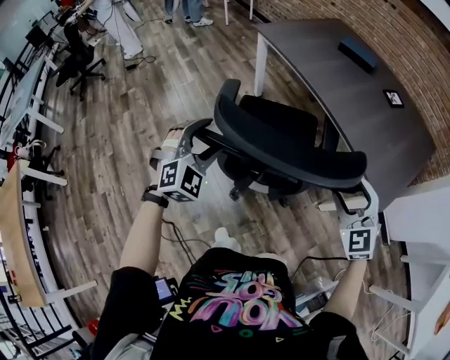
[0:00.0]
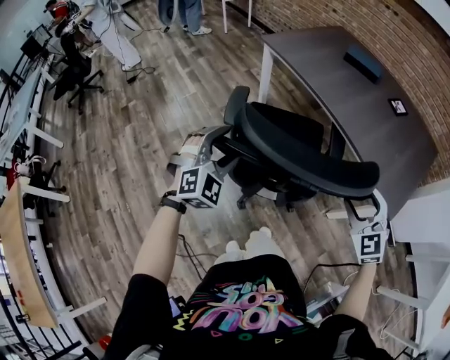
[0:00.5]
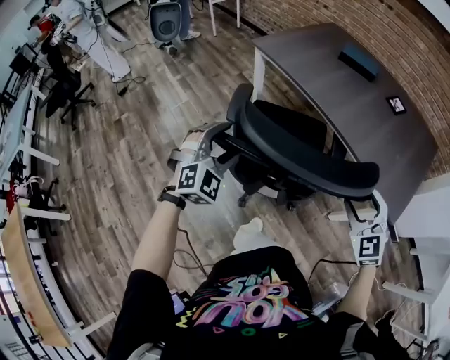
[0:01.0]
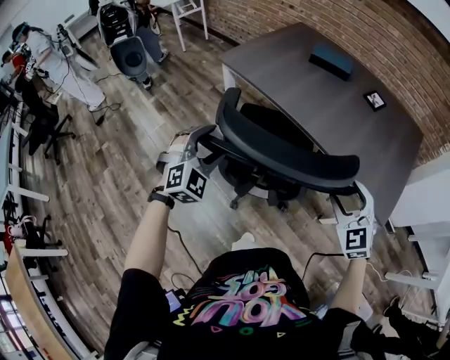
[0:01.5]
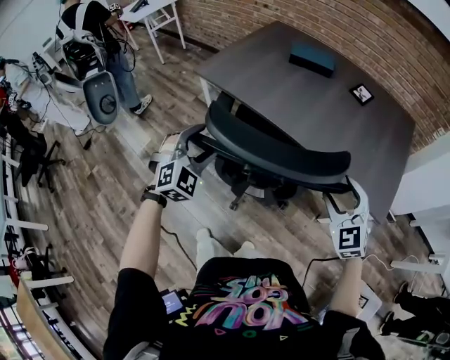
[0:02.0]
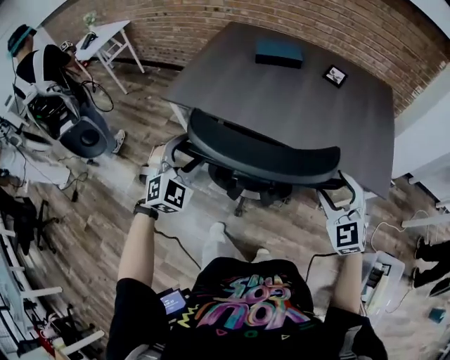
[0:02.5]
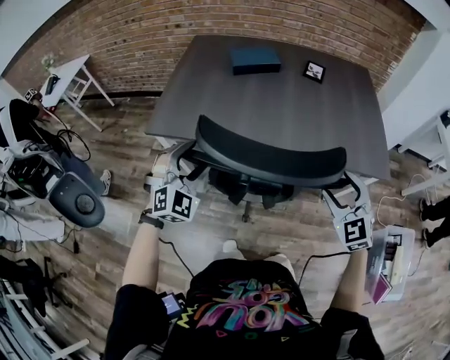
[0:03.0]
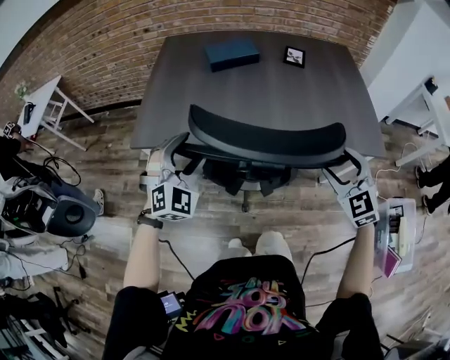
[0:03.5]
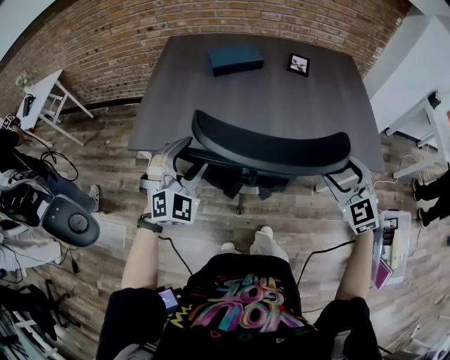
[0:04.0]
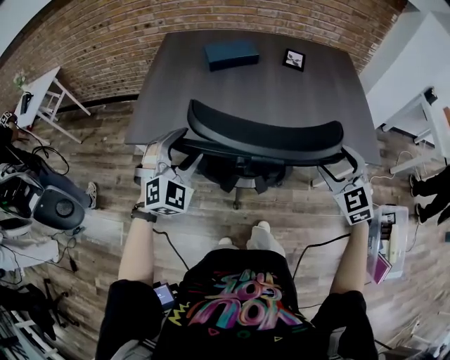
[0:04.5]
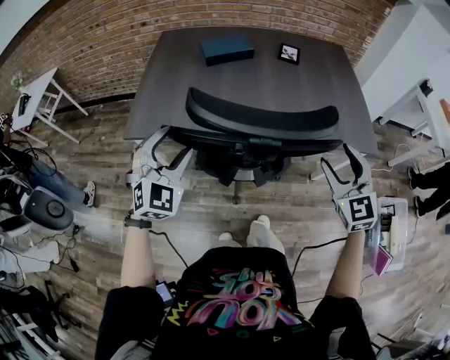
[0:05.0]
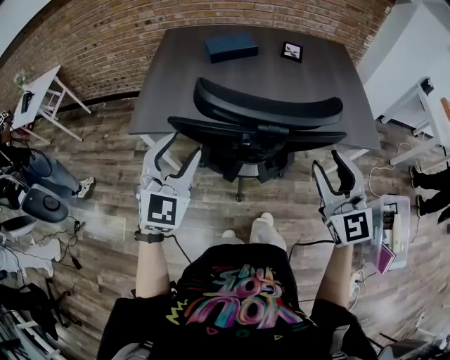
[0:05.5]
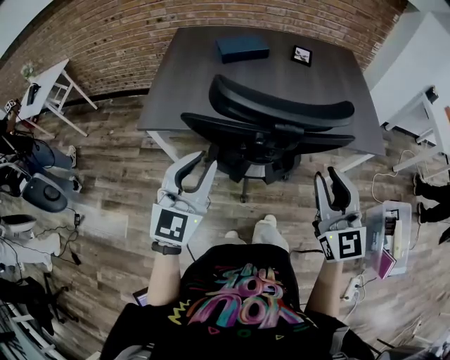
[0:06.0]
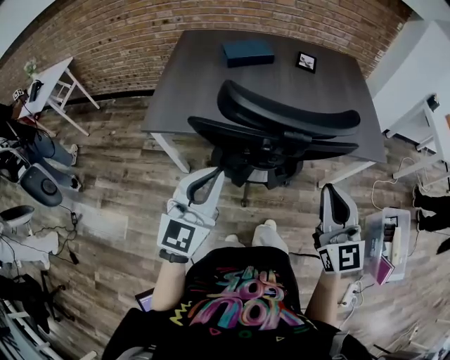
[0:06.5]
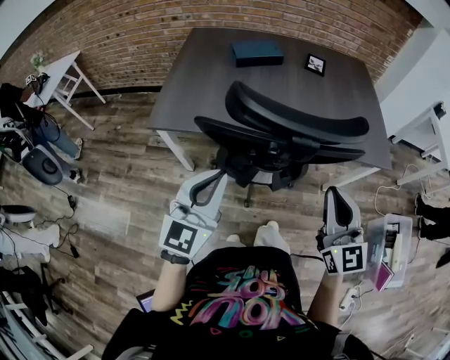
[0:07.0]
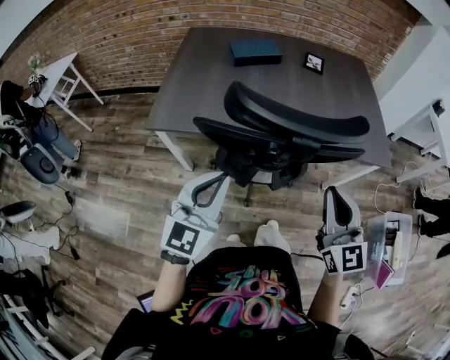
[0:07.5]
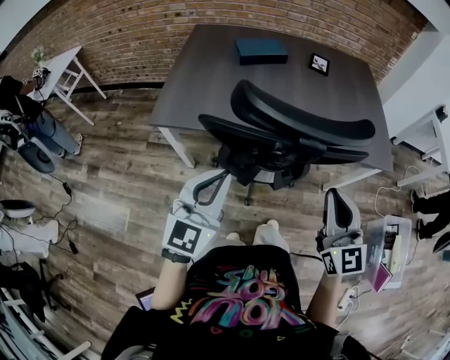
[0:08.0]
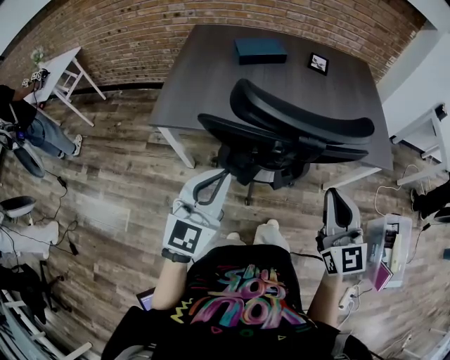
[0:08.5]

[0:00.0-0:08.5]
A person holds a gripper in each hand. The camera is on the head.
0:00.0 to 0:02.0: The left gripper moves forward, some 30 cm, and swivels roughly 20 degrees. The right gripper goes approximately 20 cm forward, and changes its angle by approximately 20 degrees.
0:02.0 to 0:04.0: The left gripper shifts by roughly 20 cm, and changes its angle by some 30 degrees. The right gripper moves roughly 10 cm, and turns by some 30 degrees.
0:04.0 to 0:06.5: The left gripper travels backward and upward by approximately 15 cm, rolls counterclockwise, seen from behind, by some 50 degrees, and closes. Meanwhile the right gripper goes about 20 cm backward, to the left and upward, changes its angle by approximately 40 degrees, and closes its fingers.
0:06.5 to 0:08.5: There are only small adjustments of the grippers.

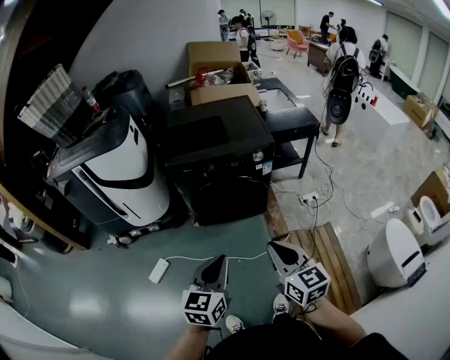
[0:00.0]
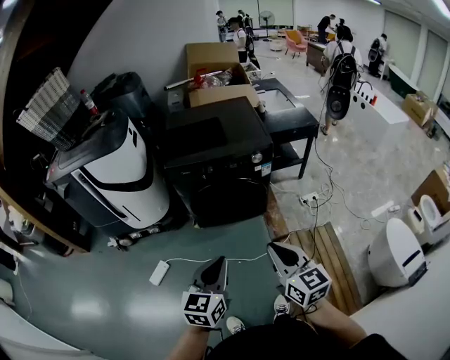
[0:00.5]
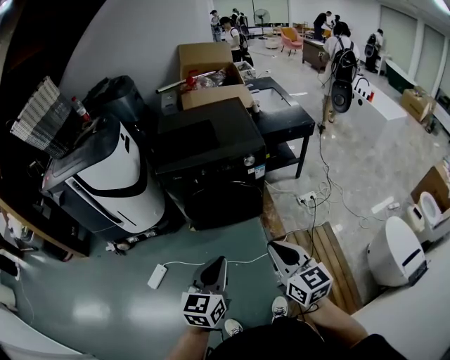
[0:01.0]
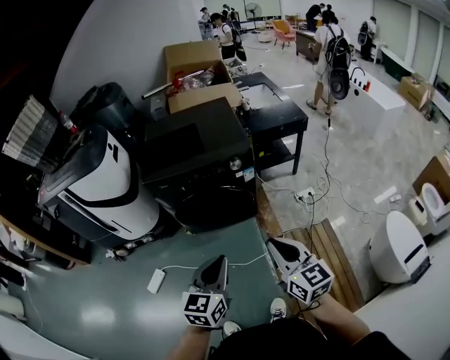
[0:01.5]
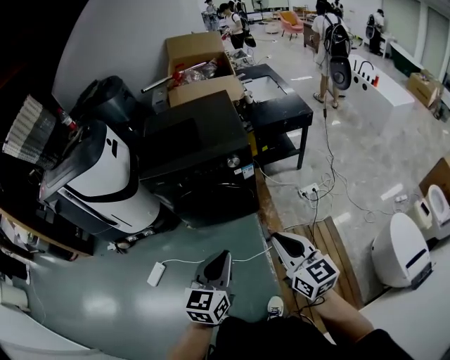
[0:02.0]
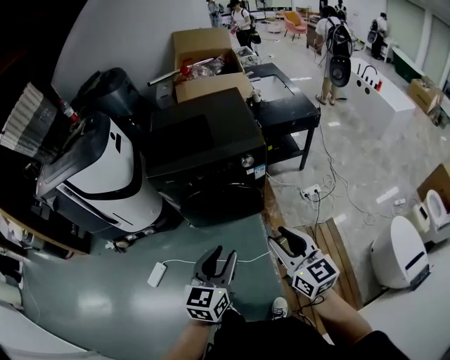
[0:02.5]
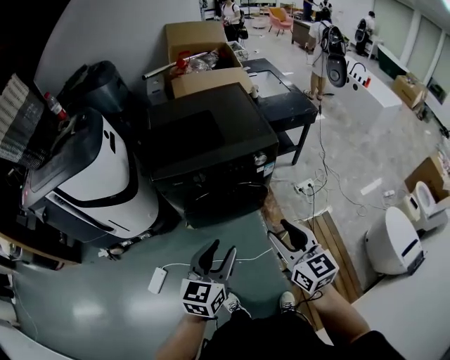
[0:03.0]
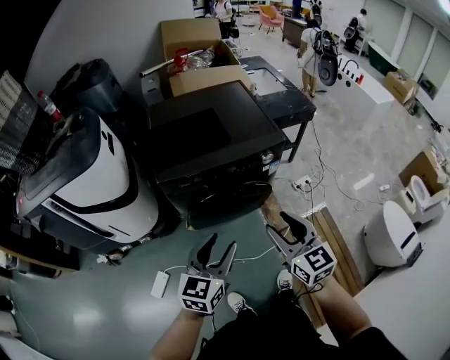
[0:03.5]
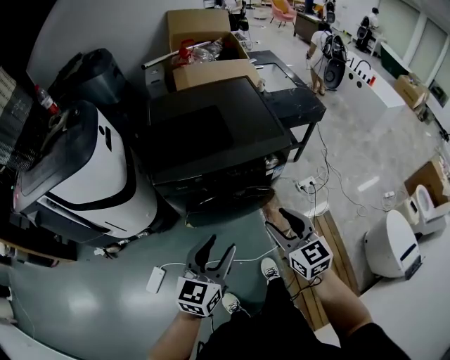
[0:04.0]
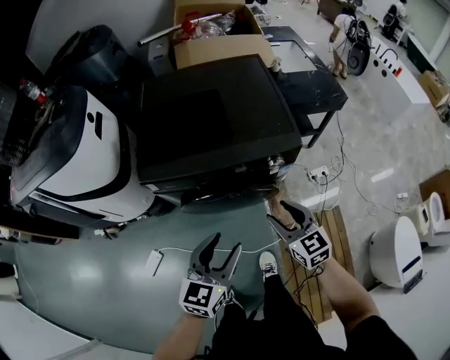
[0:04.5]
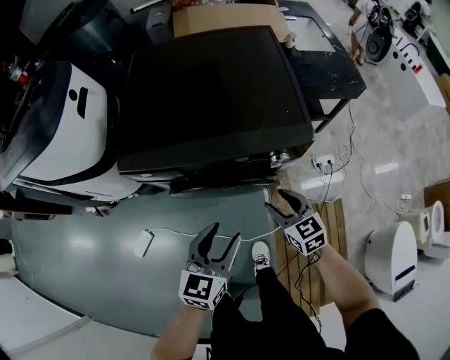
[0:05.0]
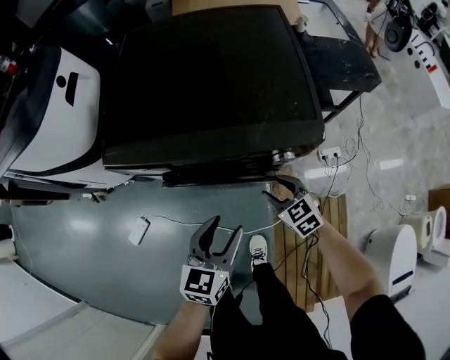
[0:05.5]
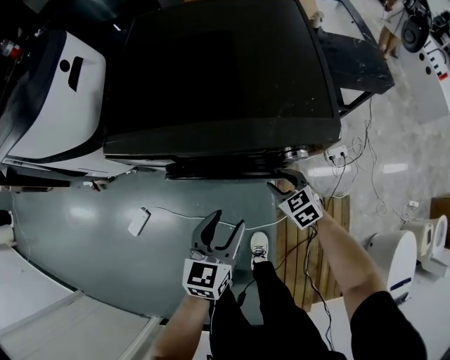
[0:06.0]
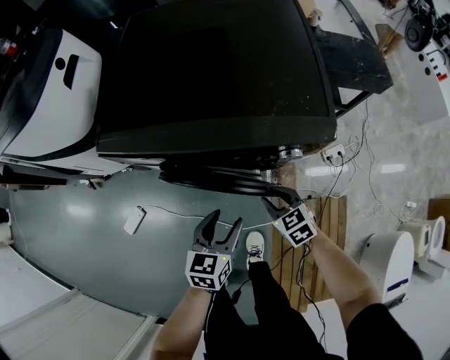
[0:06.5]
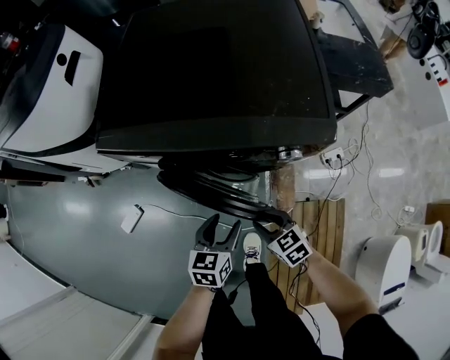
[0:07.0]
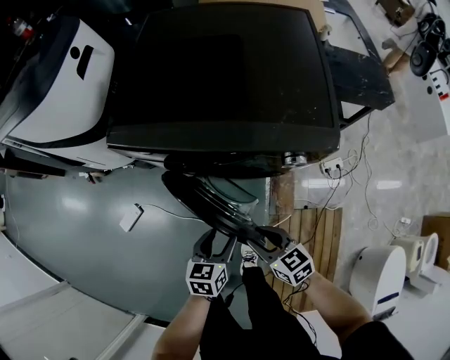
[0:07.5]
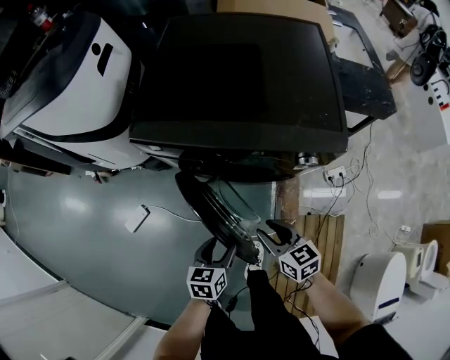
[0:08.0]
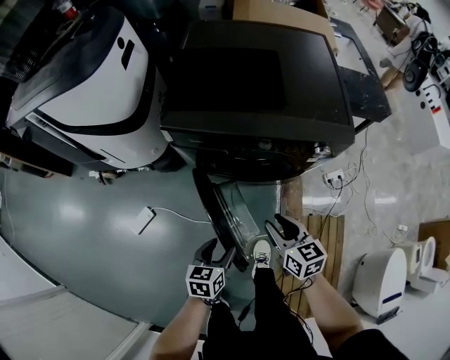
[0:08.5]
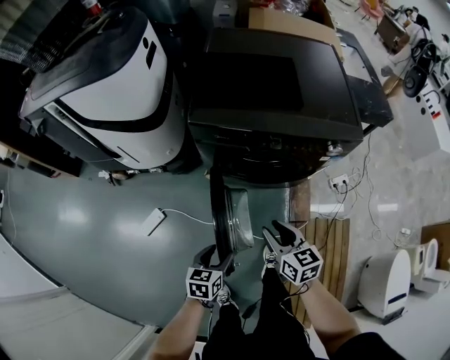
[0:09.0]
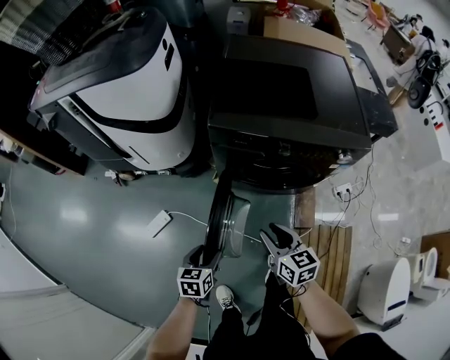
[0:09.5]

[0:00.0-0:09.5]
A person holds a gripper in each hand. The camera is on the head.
0:00.0 to 0:02.0: The grippers both shift to the right and forward by some 20 cm.
0:02.0 to 0:04.0: Both grippers move to the left and forward, roughly 30 cm. The right gripper opens up, while the left gripper opens its fingers.
0:04.0 to 0:05.5: The right gripper moves downward and forward, some 35 cm, and rotates some 30 degrees. Meanwhile the left gripper heads downward, forward and to the right, covering roughly 25 cm, and swivels some 20 degrees.
0:05.5 to 0:07.5: The left gripper travels downward by some 15 cm, and rotates some 20 degrees; the right gripper goes roughly 15 cm backward and to the left, and changes its angle by roughly 20 degrees.
0:07.5 to 0:09.5: The right gripper goes about 20 cm to the left and upward. The left gripper heads to the left, covering some 30 cm.

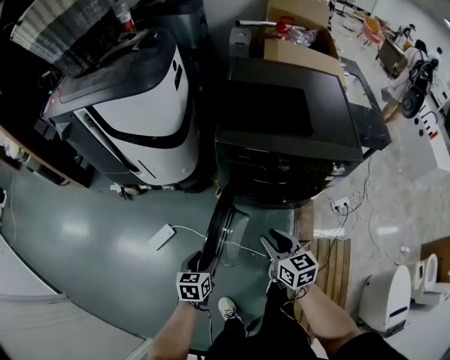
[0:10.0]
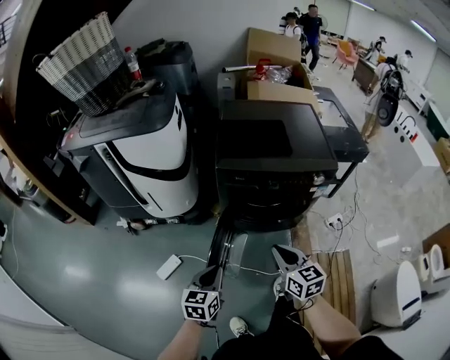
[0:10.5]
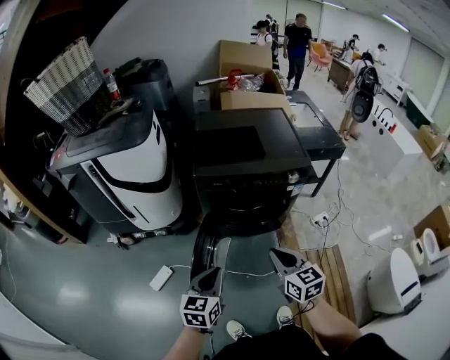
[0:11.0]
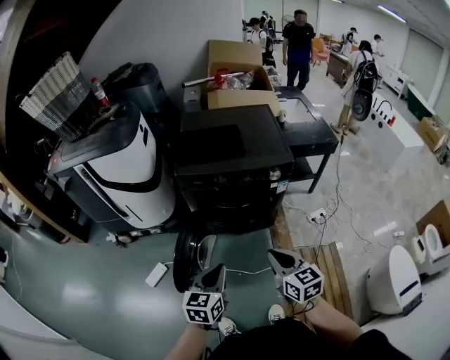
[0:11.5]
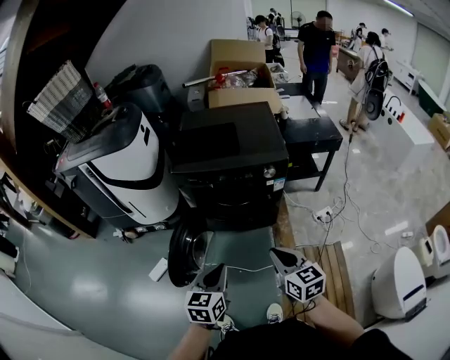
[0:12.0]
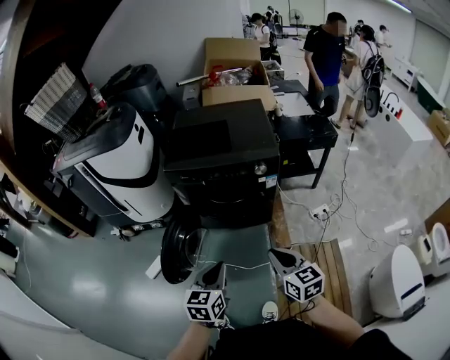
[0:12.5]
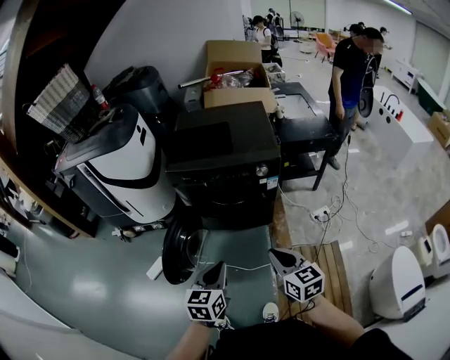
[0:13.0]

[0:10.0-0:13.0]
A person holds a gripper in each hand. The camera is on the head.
0:10.0 to 0:11.5: The left gripper heads upward, to the right and backward, covering roughly 30 cm, changes its angle by some 30 degrees, and closes up. The right gripper is displaced backward, upward and to the right by roughly 30 cm, and closes up.
0:11.5 to 0:13.0: The grippers both shift to the right by some 10 cm.

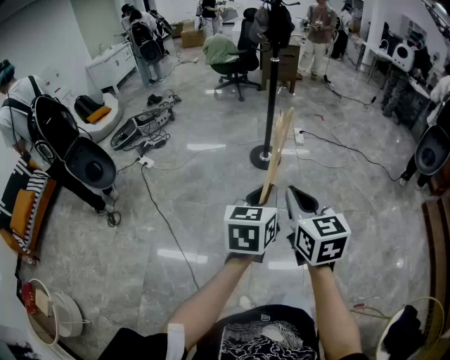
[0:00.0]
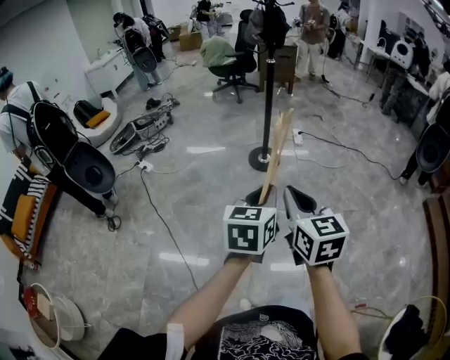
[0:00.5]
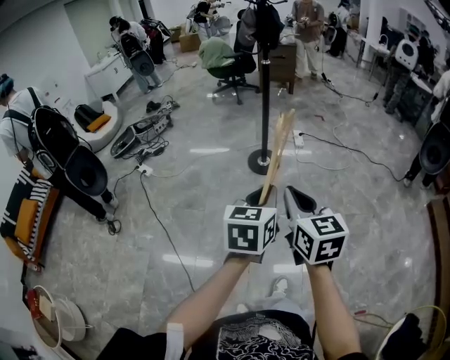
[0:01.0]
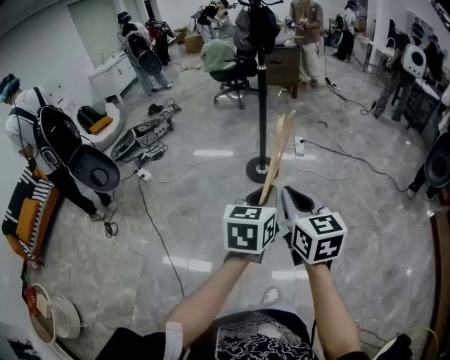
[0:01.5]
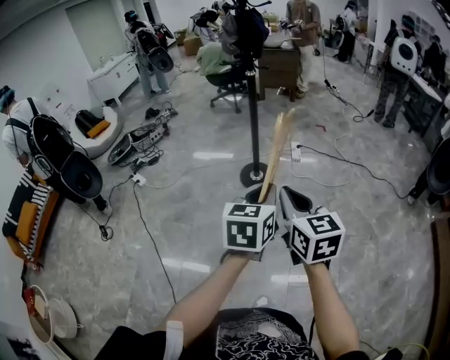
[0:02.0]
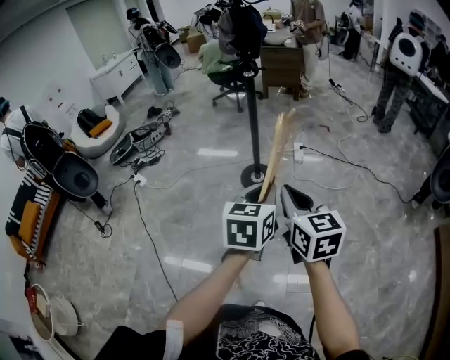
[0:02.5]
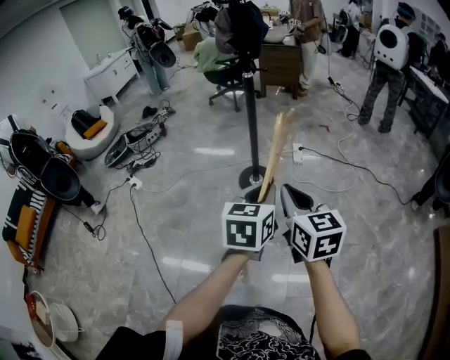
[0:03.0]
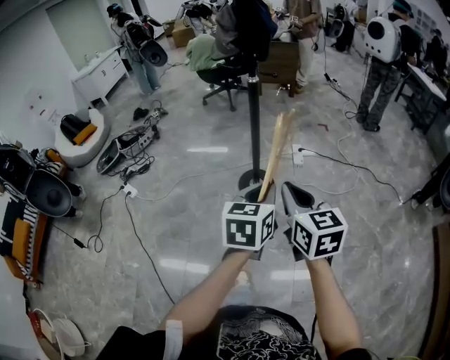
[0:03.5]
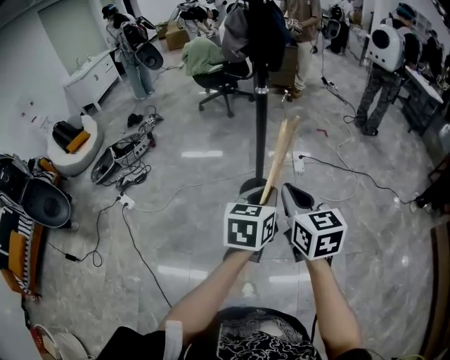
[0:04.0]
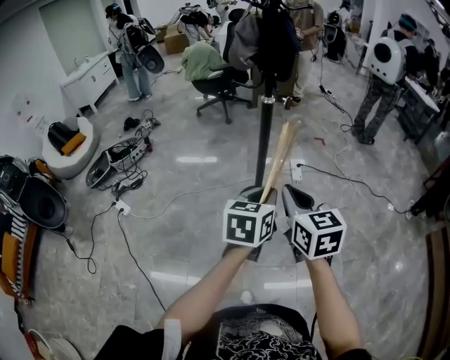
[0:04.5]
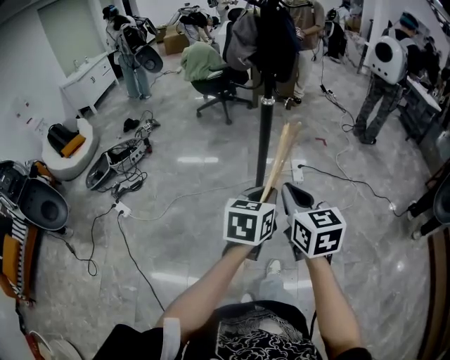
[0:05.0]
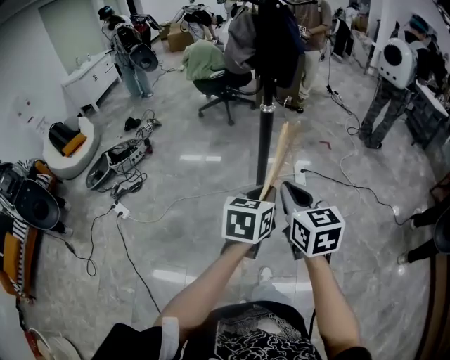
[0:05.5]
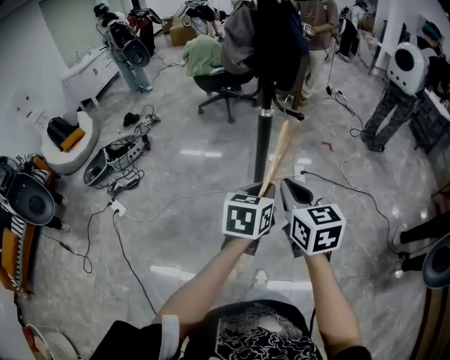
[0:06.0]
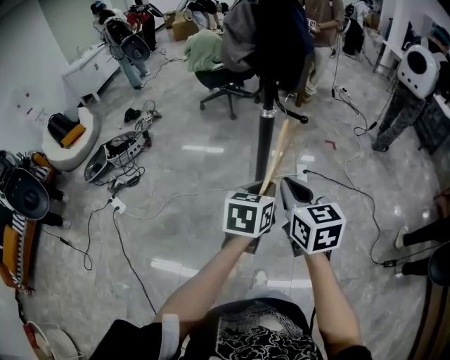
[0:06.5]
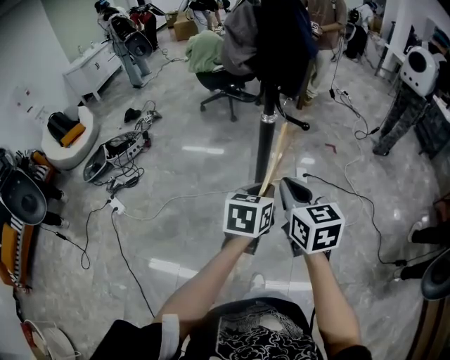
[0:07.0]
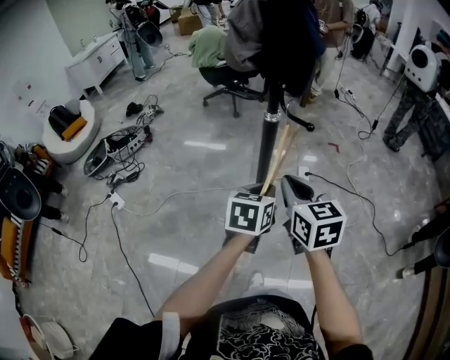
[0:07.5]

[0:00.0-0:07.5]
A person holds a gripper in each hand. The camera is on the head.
0:00.0 to 0:02.0: The right gripper shifts roughly 30 cm forward and to the right. The left gripper shifts approximately 30 cm to the right and forward.
0:02.0 to 0:04.0: The two grippers go some 30 cm forward.
0:04.0 to 0:05.5: The grippers both shift forward by approximately 15 cm.
0:05.5 to 0:07.5: The left gripper goes approximately 15 cm forward and downward. The right gripper goes about 15 cm forward.
